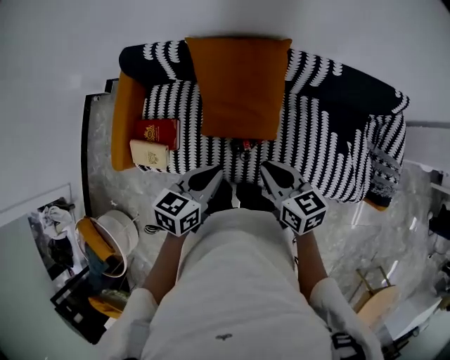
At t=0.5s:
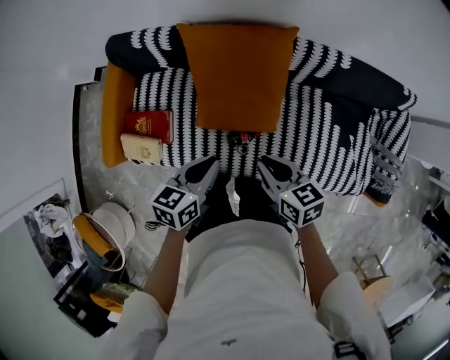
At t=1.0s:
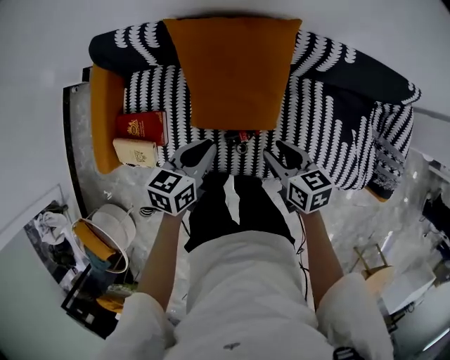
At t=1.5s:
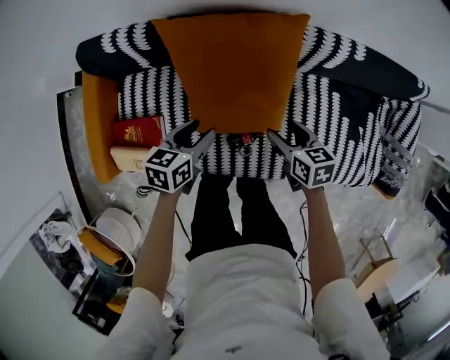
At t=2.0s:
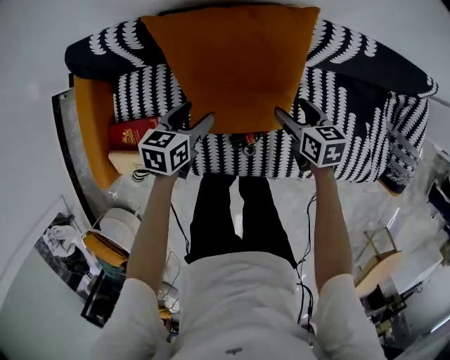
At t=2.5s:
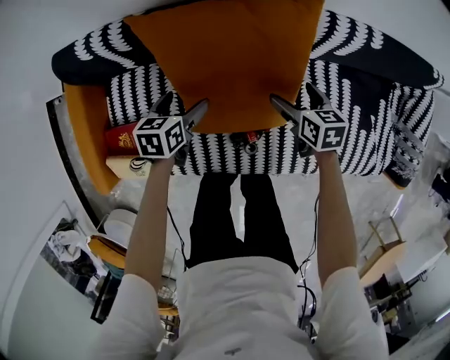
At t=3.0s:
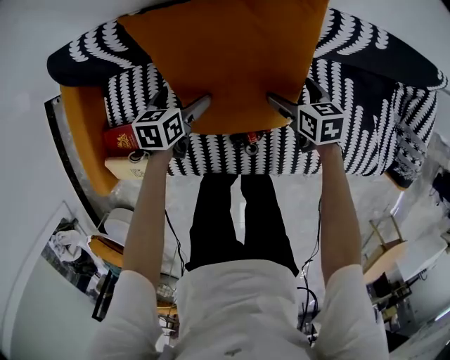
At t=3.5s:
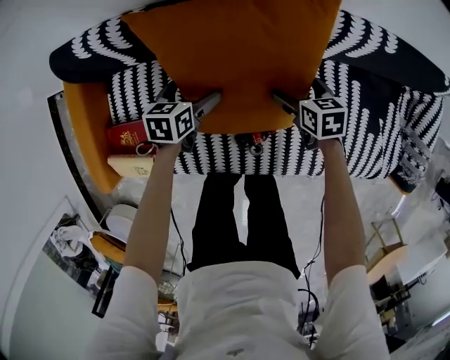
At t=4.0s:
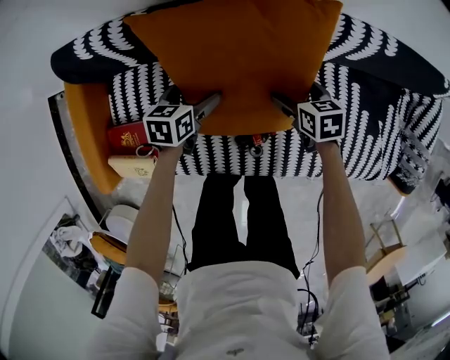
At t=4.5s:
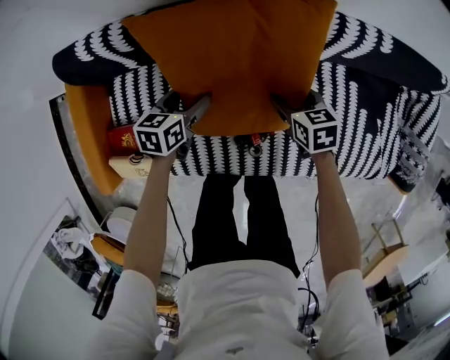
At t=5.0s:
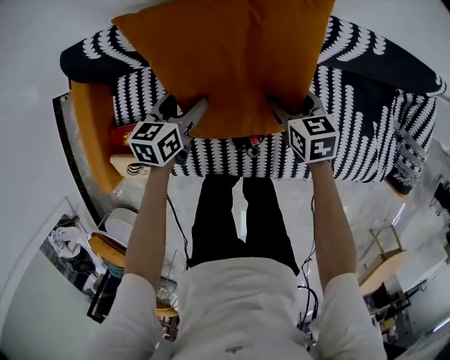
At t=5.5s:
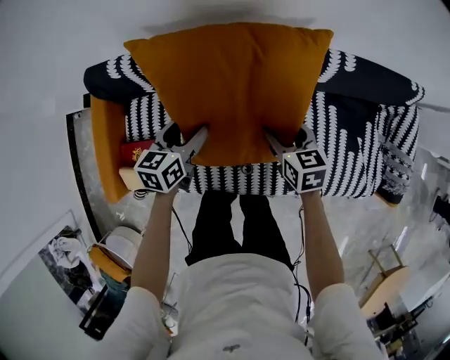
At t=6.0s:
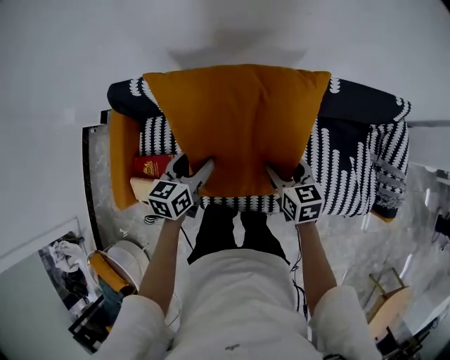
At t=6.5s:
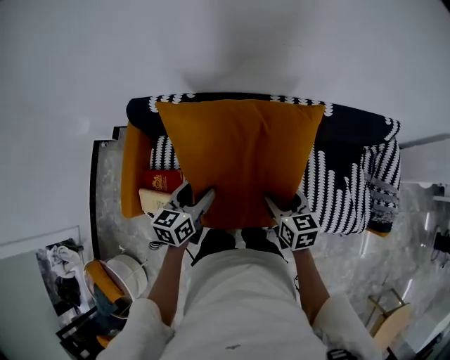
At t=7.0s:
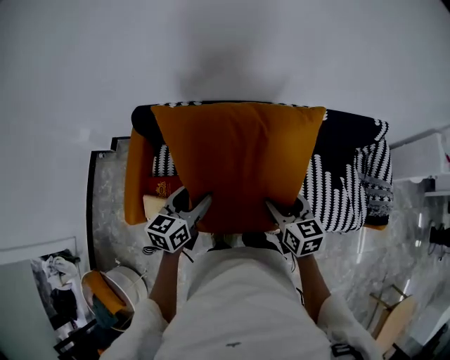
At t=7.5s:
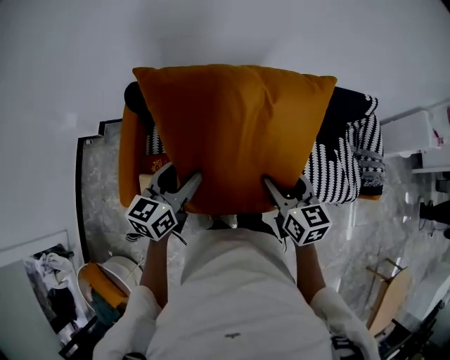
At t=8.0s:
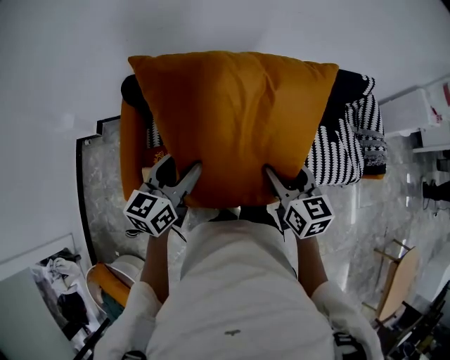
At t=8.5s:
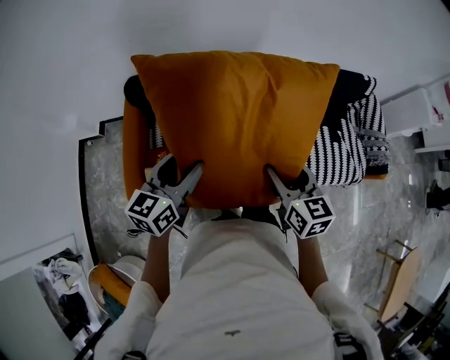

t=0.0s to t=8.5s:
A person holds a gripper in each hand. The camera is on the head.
t=0.0s to t=2.0s: The two grippers go some 35 cm downward and forward. The left gripper opens its fingers, while the right gripper changes its angle by some 20 degrees, and opens up.
t=2.0s to t=4.0s: The right gripper moves downward, about 10 cm, and opens up; the left gripper shifts roughly 10 cm downward and forward, and opens up.
t=4.0s to t=6.5s: The two grippers go approximately 35 cm upward and backward. The left gripper swivels about 20 degrees, and closes up. The right gripper rotates approximately 20 degrees, and closes up.
t=6.5s to t=8.5s: The left gripper heads to the left, backward and upward, covering roughly 20 cm, while the right gripper heads backward, upward and to the left, covering about 25 cm.

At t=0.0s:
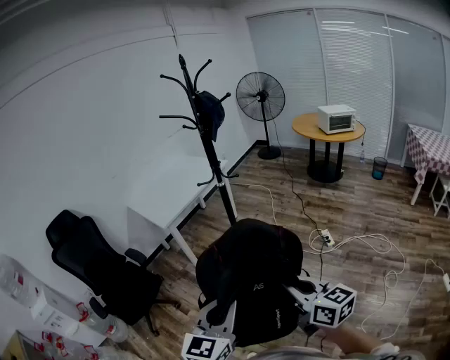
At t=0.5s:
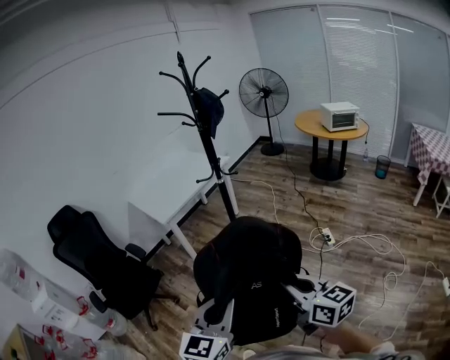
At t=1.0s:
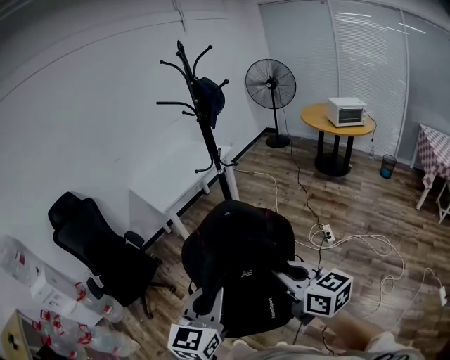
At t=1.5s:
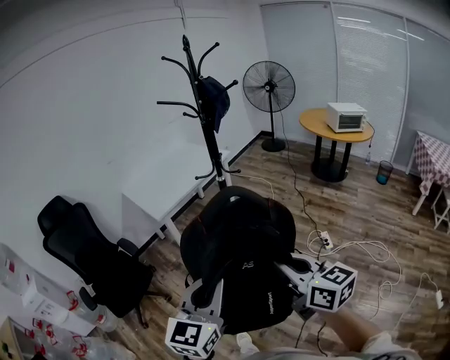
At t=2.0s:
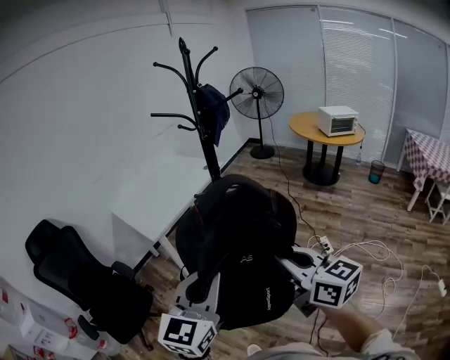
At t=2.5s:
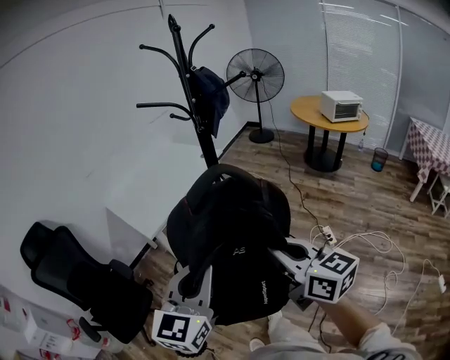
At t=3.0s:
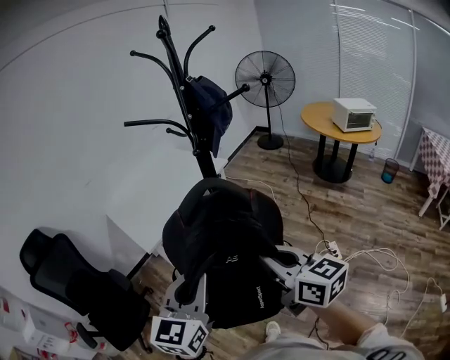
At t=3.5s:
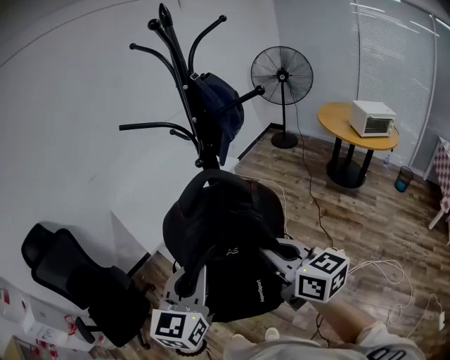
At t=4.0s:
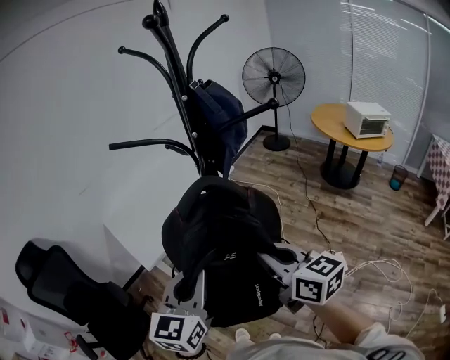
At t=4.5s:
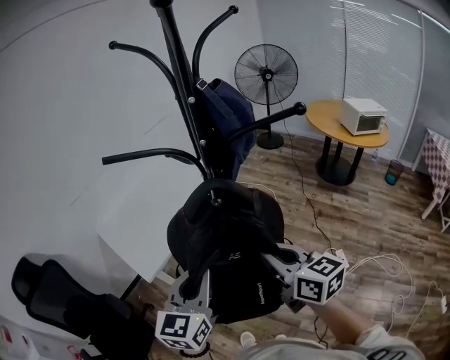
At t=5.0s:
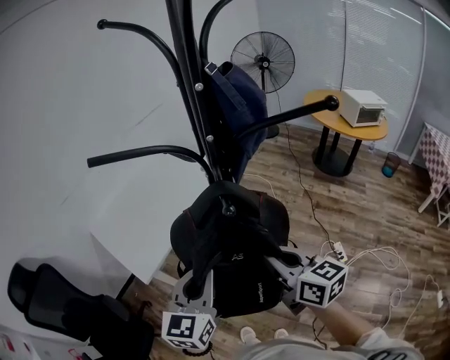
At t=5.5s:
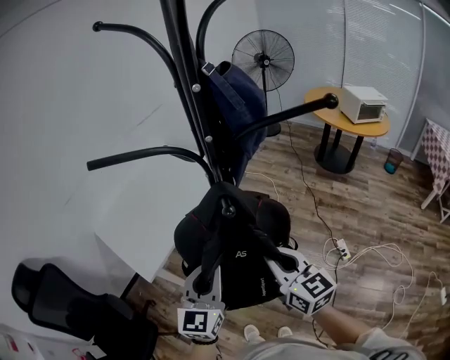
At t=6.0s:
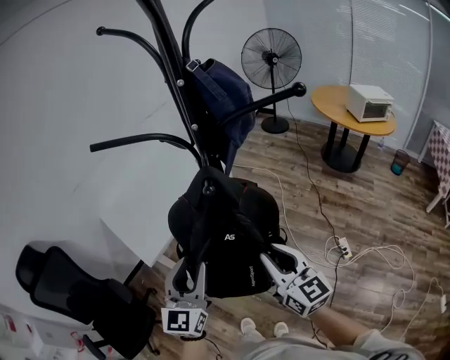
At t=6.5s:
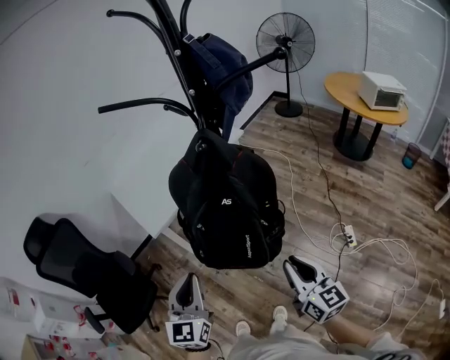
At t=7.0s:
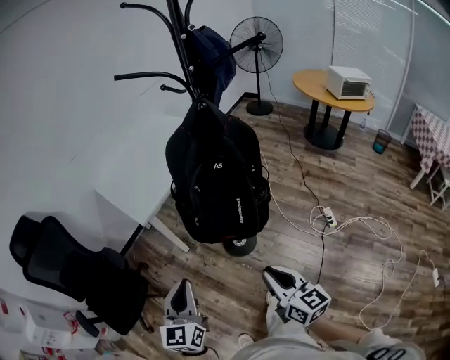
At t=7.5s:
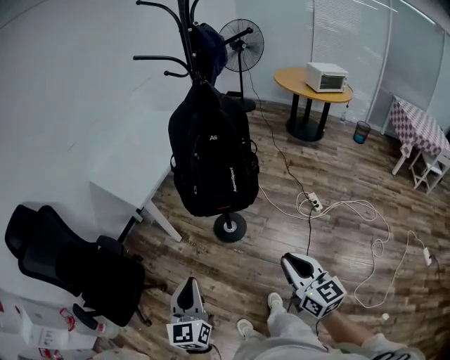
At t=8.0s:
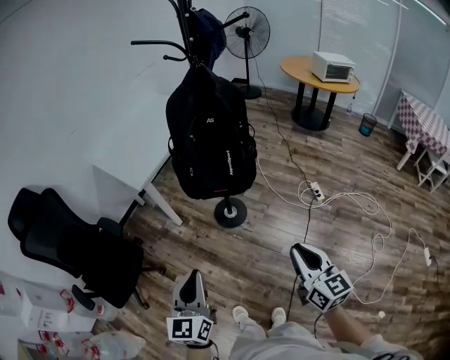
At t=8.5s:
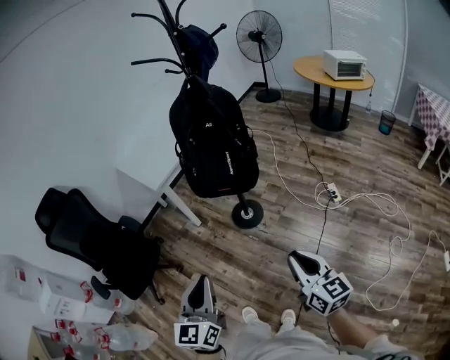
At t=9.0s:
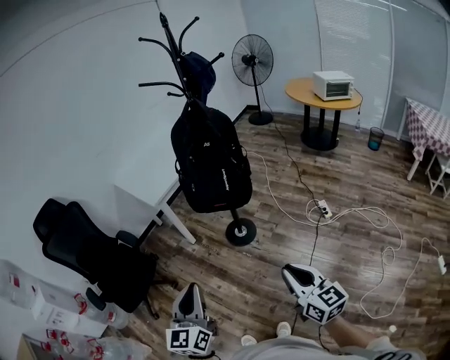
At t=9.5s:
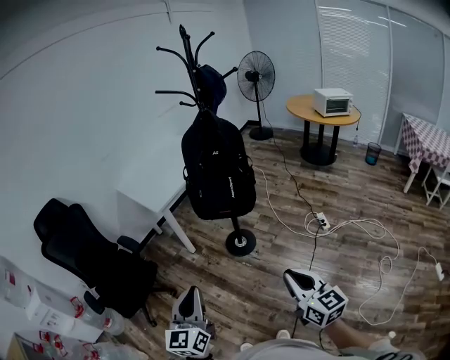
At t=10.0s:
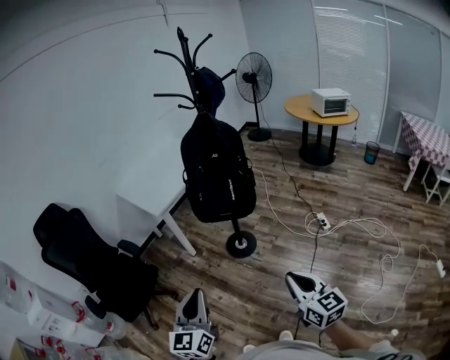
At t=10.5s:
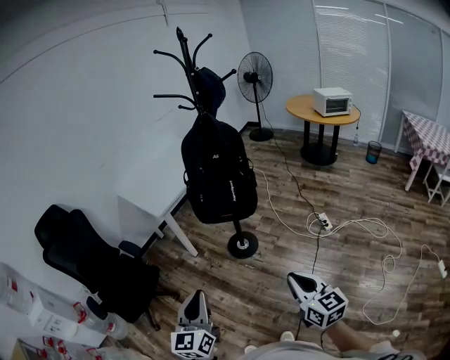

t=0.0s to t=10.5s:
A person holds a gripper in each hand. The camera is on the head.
t=0.0s to t=2.0s: The right gripper heads forward and upward, covering roughly 25 cm, while the left gripper travels forward by some 20 cm.
t=2.0s to t=4.0s: Both grippers travel together forward, about 35 cm.
t=4.0s to t=6.5s: The left gripper travels downward and to the left by some 15 cm, moves some 10 cm forward and comes back, and opens, then closes once more; the right gripper travels downward and backward by roughly 15 cm.
t=6.5s to t=8.5s: Both grippers travel together backward, roughly 40 cm.
t=8.5s to t=10.5s: The right gripper goes about 5 cm backward. Meanwhile the left gripper is displaced to the left by approximately 5 cm.

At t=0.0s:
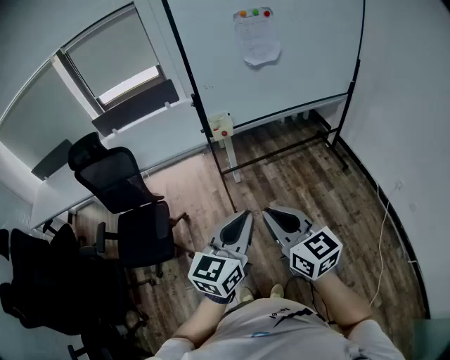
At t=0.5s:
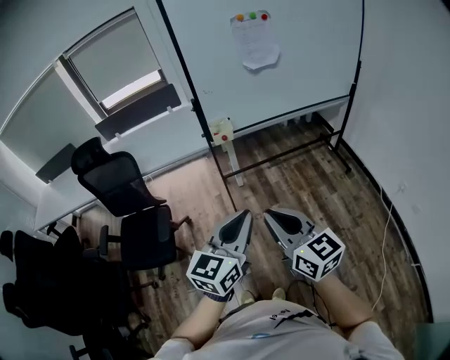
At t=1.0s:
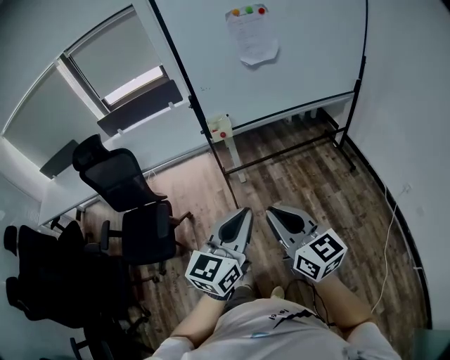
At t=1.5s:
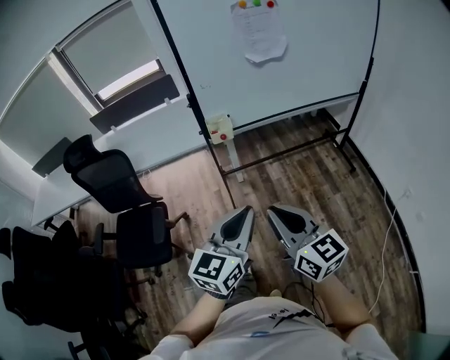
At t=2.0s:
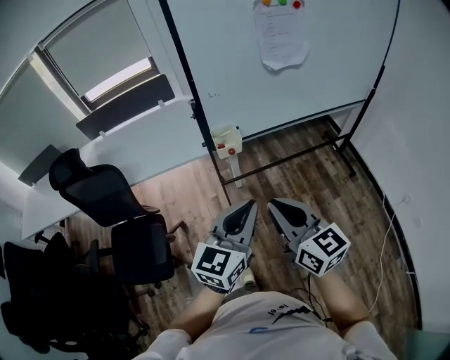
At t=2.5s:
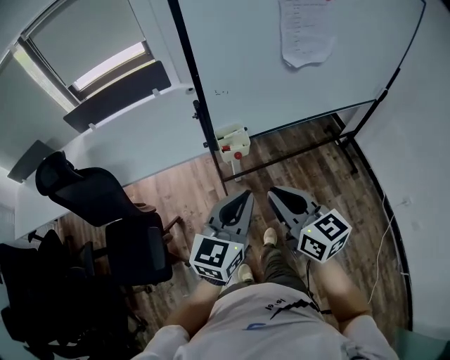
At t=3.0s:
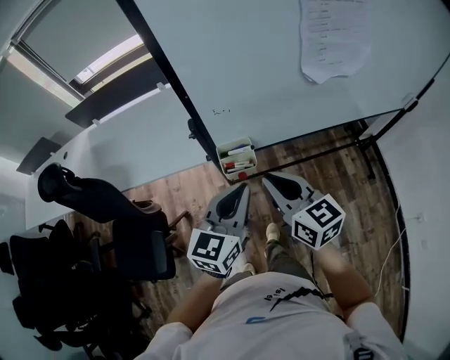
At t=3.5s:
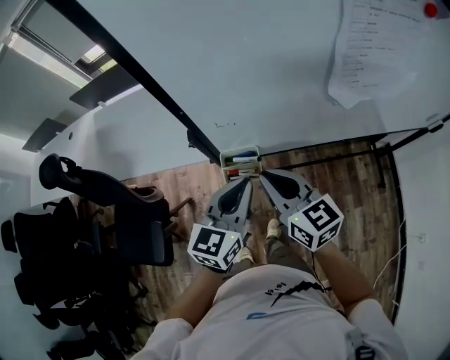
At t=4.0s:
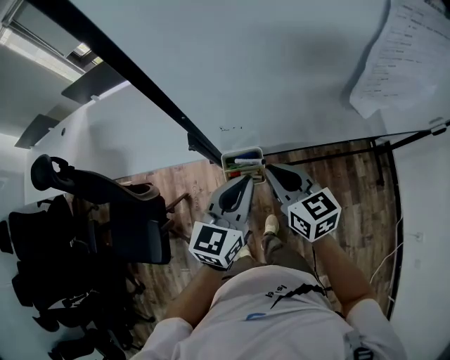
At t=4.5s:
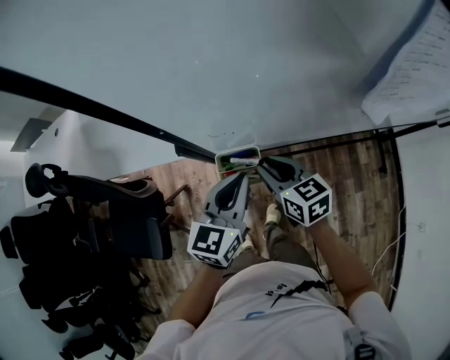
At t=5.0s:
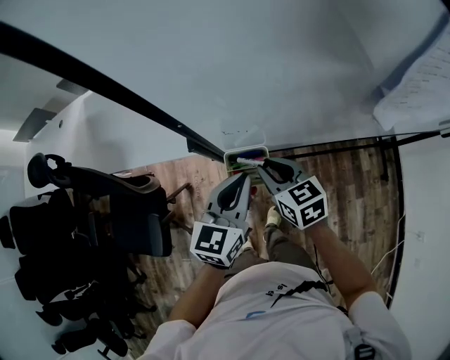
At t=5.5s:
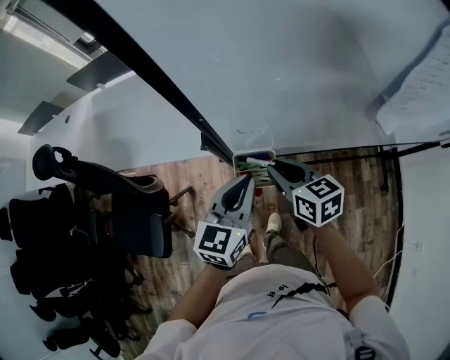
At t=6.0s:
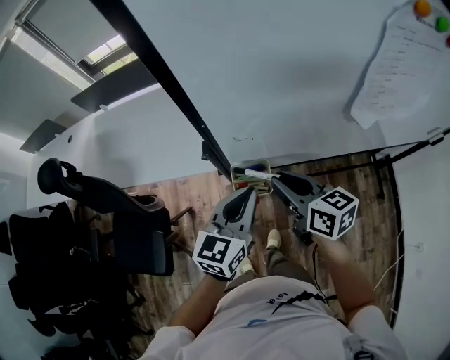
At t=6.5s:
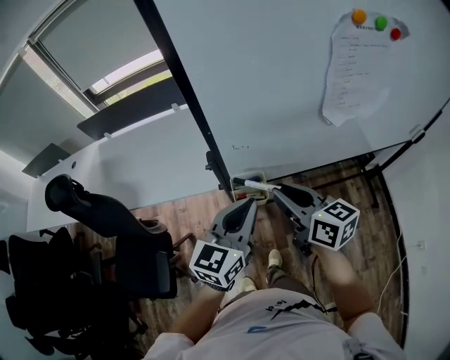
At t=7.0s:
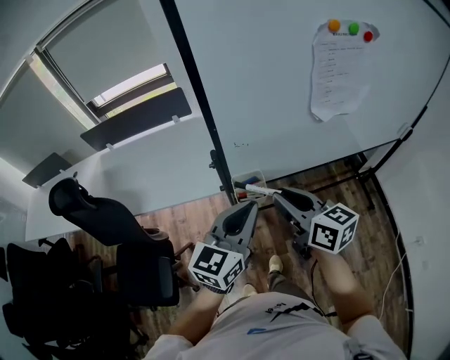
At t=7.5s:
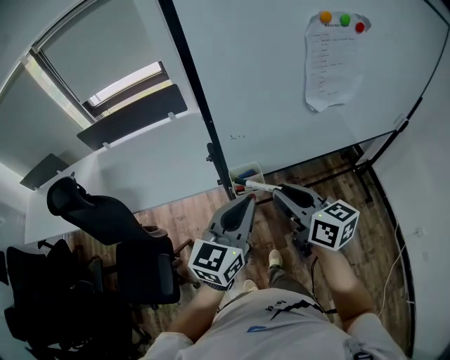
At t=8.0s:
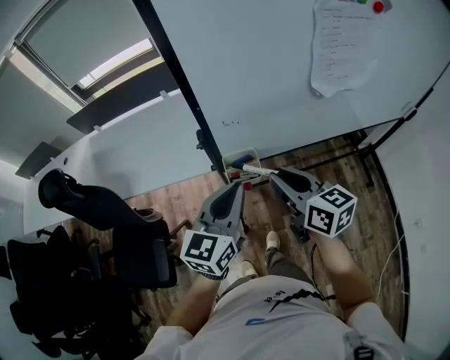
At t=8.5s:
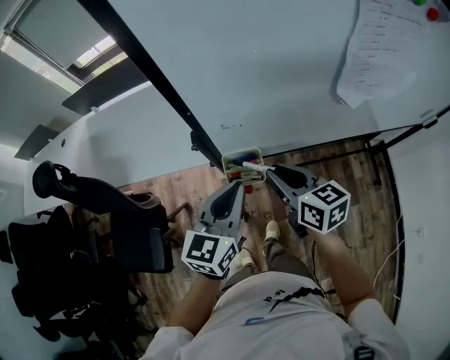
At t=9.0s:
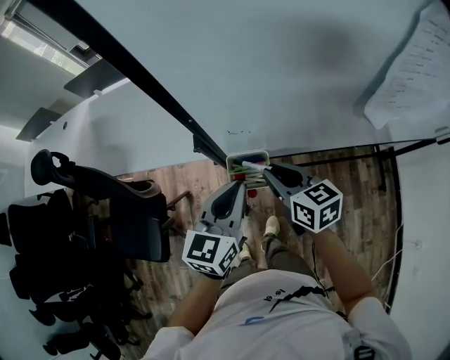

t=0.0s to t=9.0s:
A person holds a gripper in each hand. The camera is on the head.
t=0.0s to t=2.0s: Both grippers travel together forward, roughly 25 cm.
t=2.0s to t=4.5s: The grippers both shift forward and downward by about 50 cm. The right gripper rotates roughly 30 degrees. Meanwhile the left gripper turns by roughly 20 degrees.
t=4.5s to t=7.0s: The grippers both shift upward and backward by roughly 20 cm. The right gripper changes its angle by approximately 20 degrees.
t=7.0s to t=9.0s: Both grippers move downward and forward, some 20 cm. The left gripper turns by about 20 degrees.
